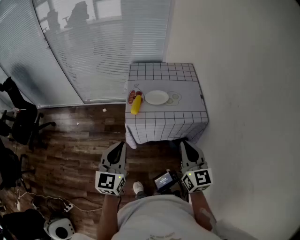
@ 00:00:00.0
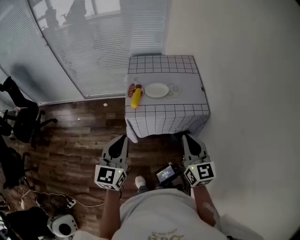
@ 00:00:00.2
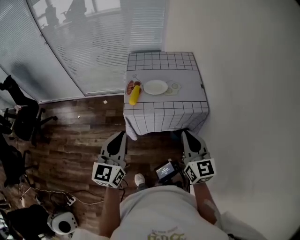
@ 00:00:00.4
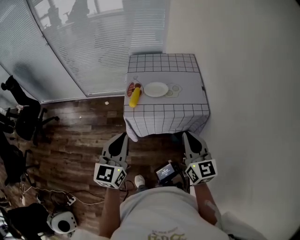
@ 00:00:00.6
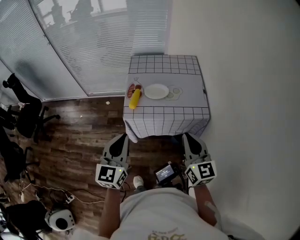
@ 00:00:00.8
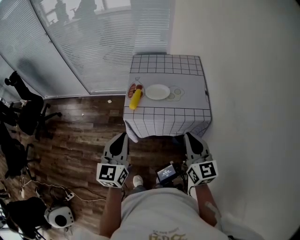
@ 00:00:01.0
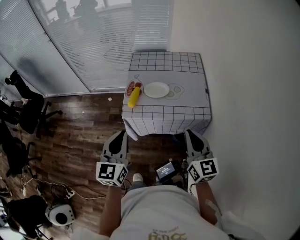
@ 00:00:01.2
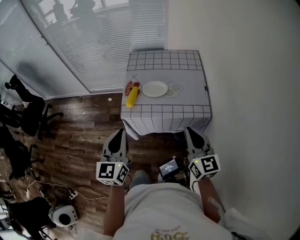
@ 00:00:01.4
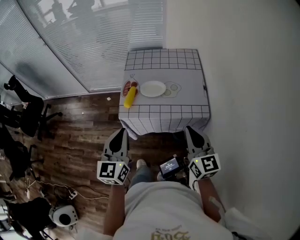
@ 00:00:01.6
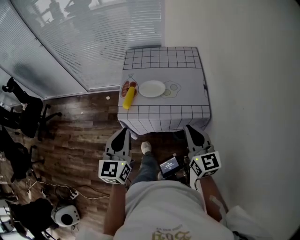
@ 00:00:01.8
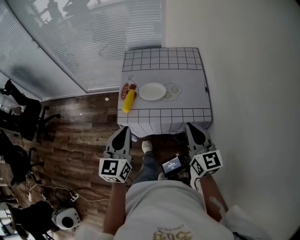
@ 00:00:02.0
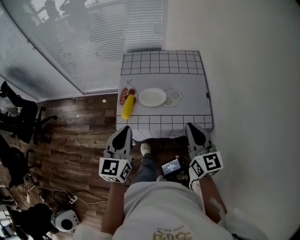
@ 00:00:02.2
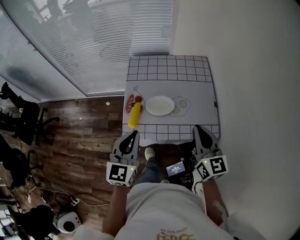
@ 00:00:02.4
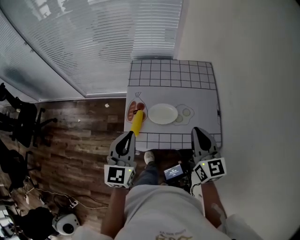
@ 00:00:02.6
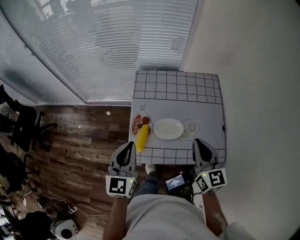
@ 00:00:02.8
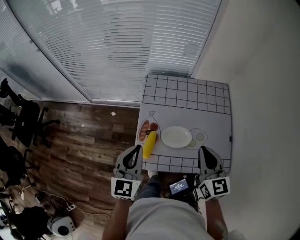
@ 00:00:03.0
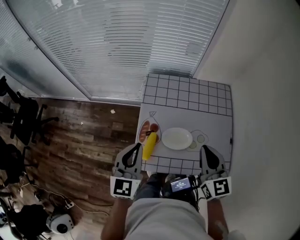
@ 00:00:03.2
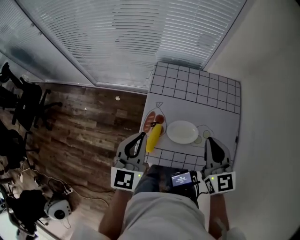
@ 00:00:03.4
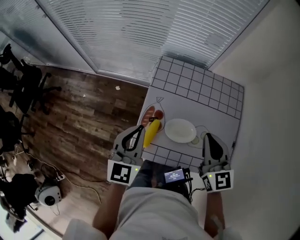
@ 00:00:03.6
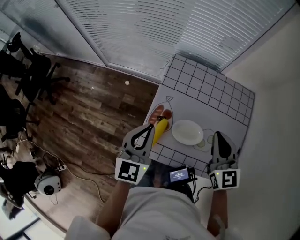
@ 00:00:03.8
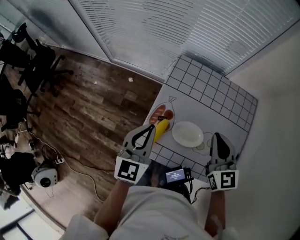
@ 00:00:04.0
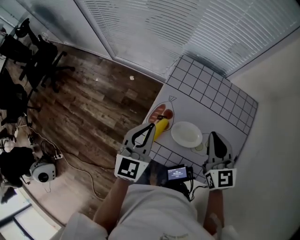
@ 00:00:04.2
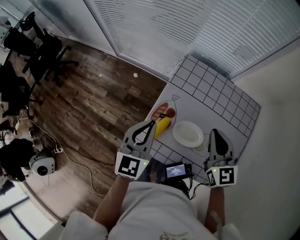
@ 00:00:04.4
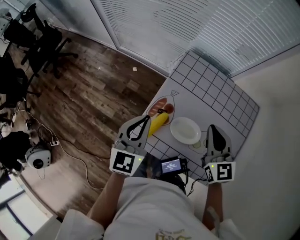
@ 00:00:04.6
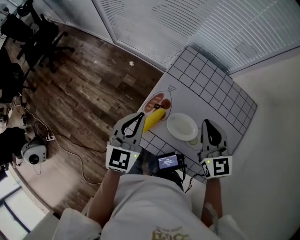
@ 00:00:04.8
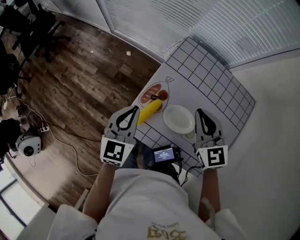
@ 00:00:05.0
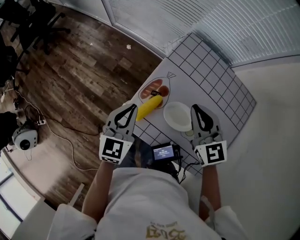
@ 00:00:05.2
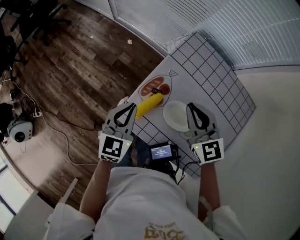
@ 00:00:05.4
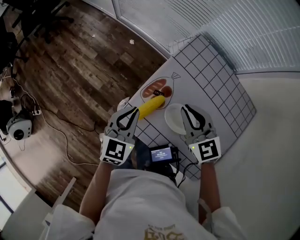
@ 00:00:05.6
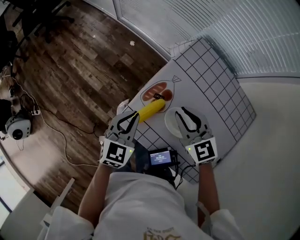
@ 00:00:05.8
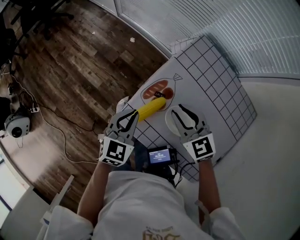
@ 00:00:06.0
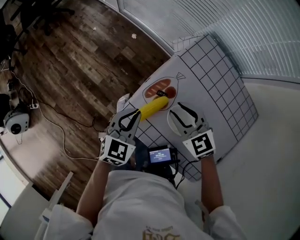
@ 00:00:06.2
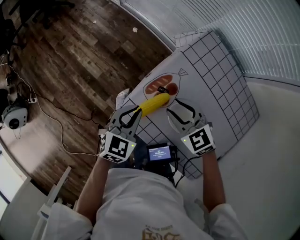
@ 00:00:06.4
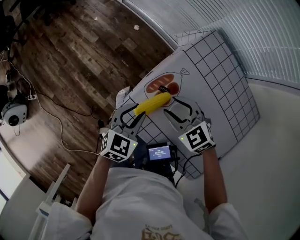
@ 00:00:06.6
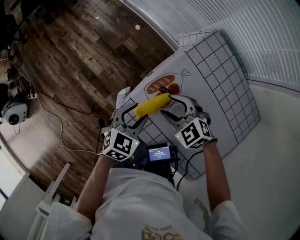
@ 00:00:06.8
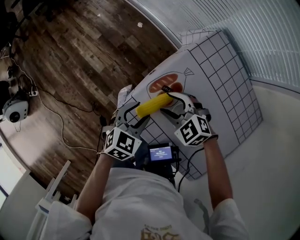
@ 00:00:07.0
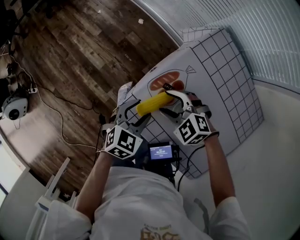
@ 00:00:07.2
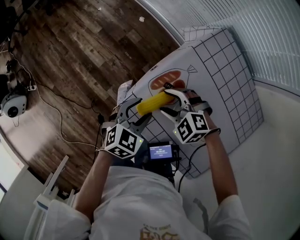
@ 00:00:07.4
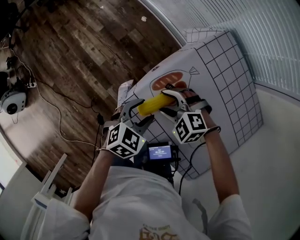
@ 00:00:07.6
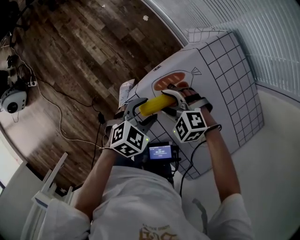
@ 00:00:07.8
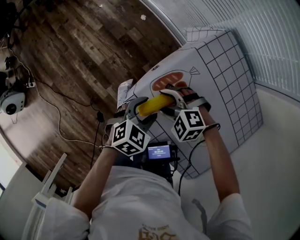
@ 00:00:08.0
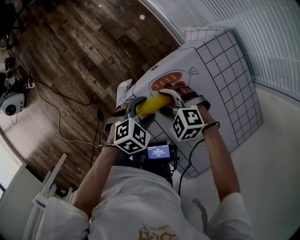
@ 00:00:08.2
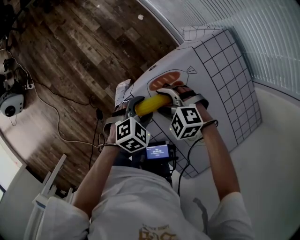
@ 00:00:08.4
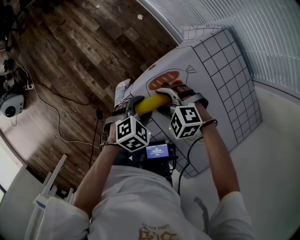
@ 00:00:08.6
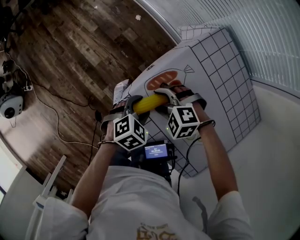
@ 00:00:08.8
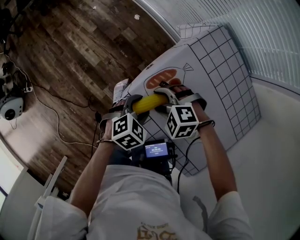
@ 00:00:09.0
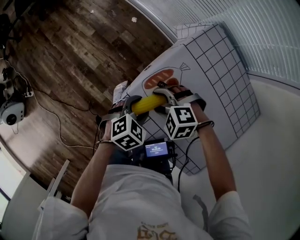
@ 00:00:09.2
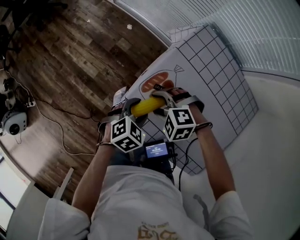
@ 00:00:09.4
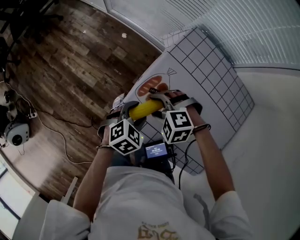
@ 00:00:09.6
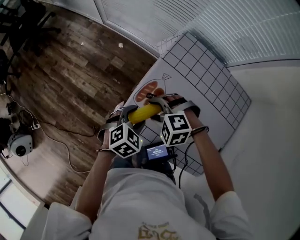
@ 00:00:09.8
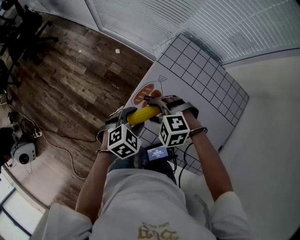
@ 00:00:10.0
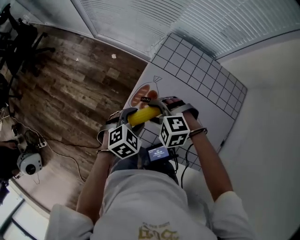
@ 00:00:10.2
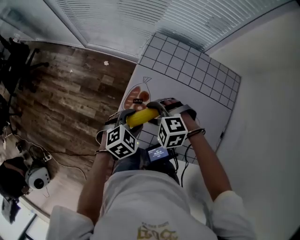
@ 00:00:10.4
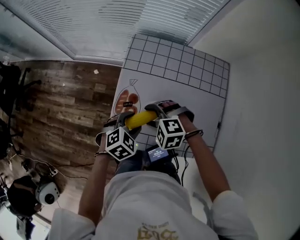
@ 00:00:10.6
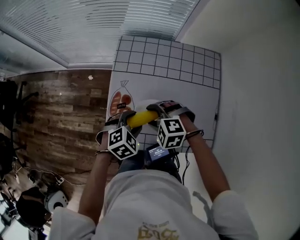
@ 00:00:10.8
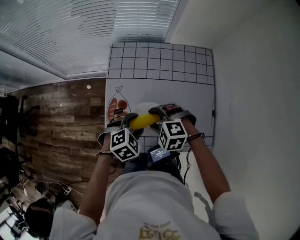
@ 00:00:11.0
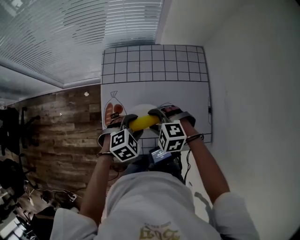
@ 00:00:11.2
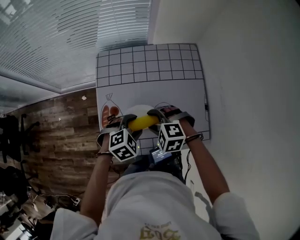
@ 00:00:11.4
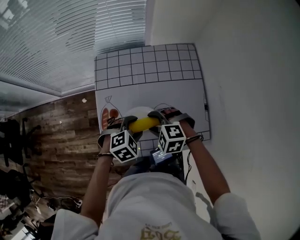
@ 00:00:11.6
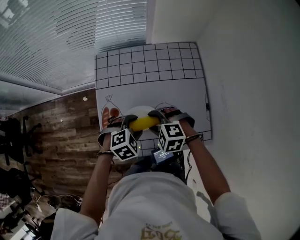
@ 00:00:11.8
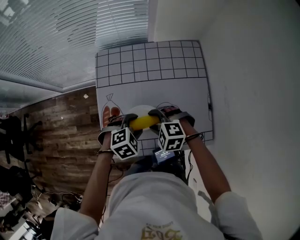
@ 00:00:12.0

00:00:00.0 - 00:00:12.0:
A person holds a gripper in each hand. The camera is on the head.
00:00:00.0 - 00:00:01.6: The grippers both shift to the right and forward by some 15 cm.
00:00:01.6 - 00:00:03.0: Both grippers travel together forward, some 25 cm.
00:00:03.0 - 00:00:04.4: The right gripper travels forward by some 10 cm, and changes its angle by roughly 20 degrees. Meanwhile the left gripper is displaced forward by roughly 5 cm.
00:00:04.4 - 00:00:06.0: The left gripper moves downward, roughly 15 cm, while the right gripper is displaced to the left and downward by approximately 15 cm, changes its angle by roughly 40 degrees, and opens its fingers.
00:00:06.0 - 00:00:07.6: The left gripper is displaced downward by roughly 5 cm, and opens; the right gripper moves downward, about 15 cm, rotates approximately 60 degrees, and opens its fingers.
00:00:07.6 - 00:00:09.0: The grippers make only small movements.
00:00:09.0 - 00:00:10.4: The two grippers go about 10 cm upward. The left gripper changes its angle by approximately 30 degrees. The right gripper swivels about 30 degrees.
00:00:10.4 - 00:00:12.0: The right gripper ends up some 15 cm from where it was, and turns by roughly 30 degrees. Meanwhile the left gripper moves approximately 10 cm, and rotates some 40 degrees.

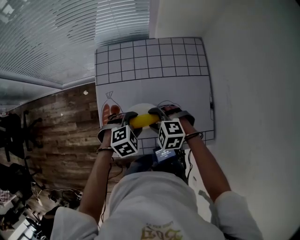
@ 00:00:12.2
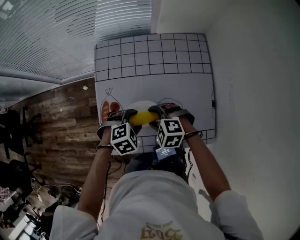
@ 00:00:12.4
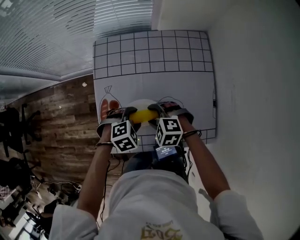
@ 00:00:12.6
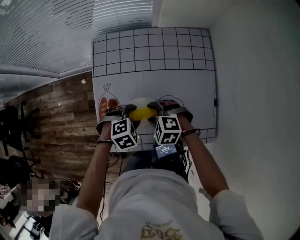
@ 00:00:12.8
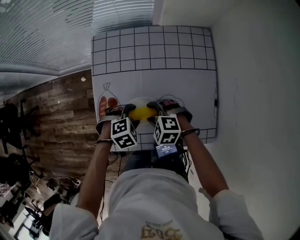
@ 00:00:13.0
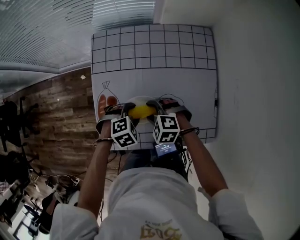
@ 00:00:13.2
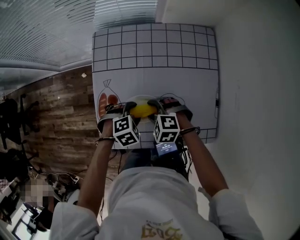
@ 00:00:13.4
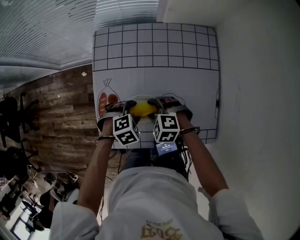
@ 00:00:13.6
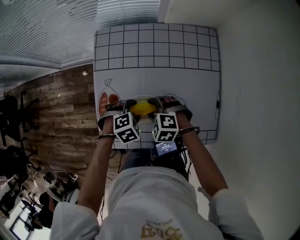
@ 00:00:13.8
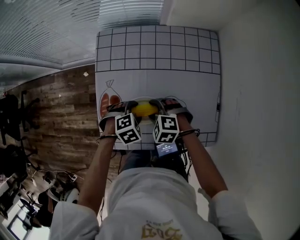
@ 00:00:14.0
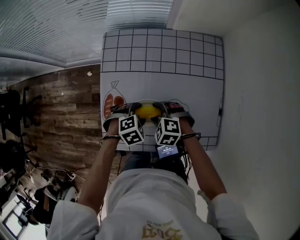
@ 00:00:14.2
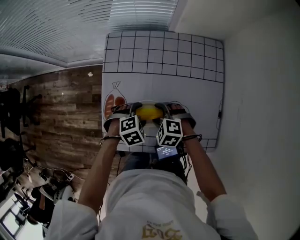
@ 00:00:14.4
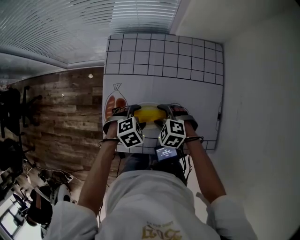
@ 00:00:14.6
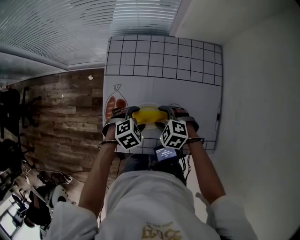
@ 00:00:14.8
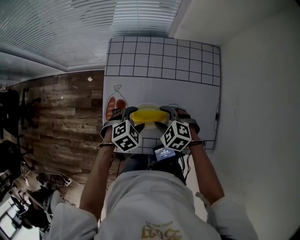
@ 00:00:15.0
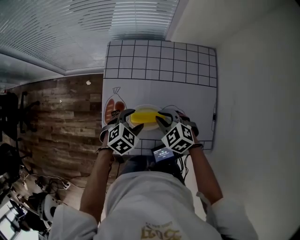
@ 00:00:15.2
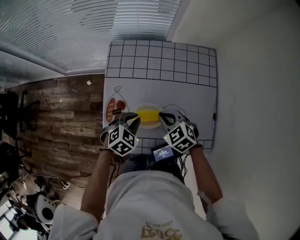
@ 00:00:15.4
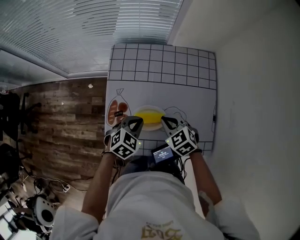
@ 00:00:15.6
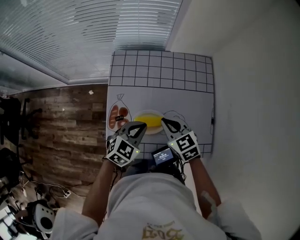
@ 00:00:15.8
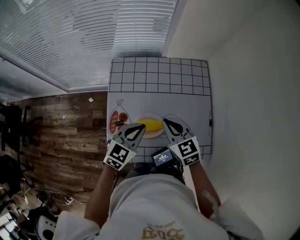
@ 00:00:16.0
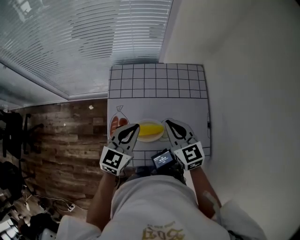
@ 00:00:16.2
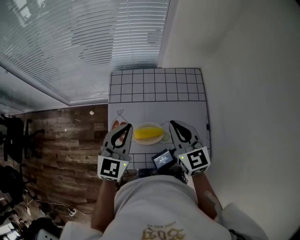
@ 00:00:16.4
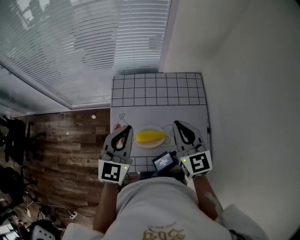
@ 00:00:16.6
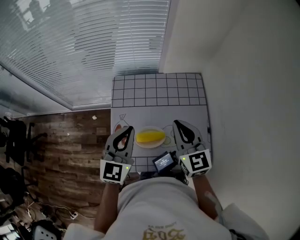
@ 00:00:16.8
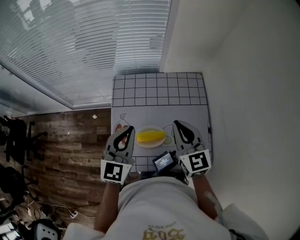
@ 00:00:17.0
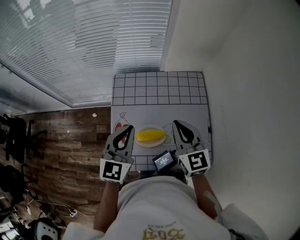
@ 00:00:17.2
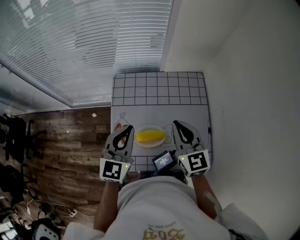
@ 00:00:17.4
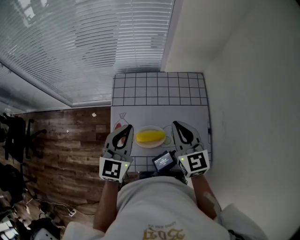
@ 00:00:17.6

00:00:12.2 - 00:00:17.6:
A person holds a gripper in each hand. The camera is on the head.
00:00:12.2 - 00:00:13.6: The two grippers go some 5 cm downward.
00:00:13.6 - 00:00:15.0: There are only small adjustments of the grippers.
00:00:15.0 - 00:00:16.2: The two grippers go roughly 20 cm upward. The right gripper angles its fingers upward, by roughly 40 degrees, and closes its fingers, while the left gripper points its fingers roughly 50 degrees further upward, and closes.
00:00:16.2 - 00:00:17.6: Both grippers move upward, roughly 5 cm.

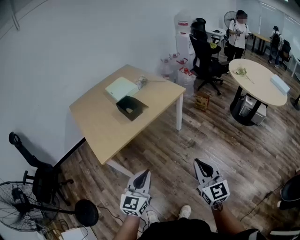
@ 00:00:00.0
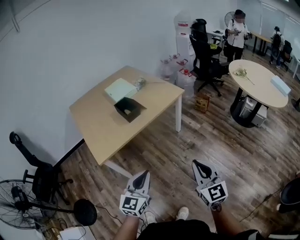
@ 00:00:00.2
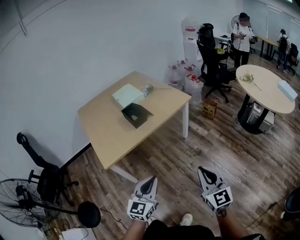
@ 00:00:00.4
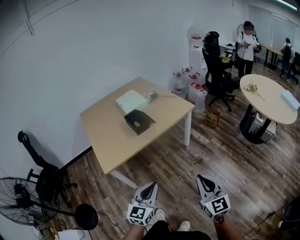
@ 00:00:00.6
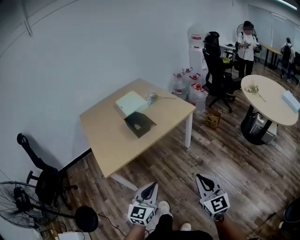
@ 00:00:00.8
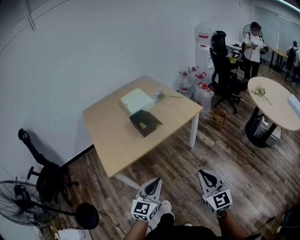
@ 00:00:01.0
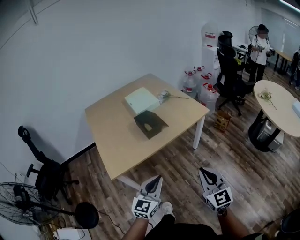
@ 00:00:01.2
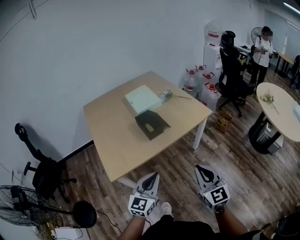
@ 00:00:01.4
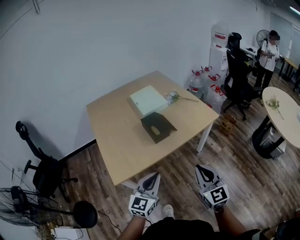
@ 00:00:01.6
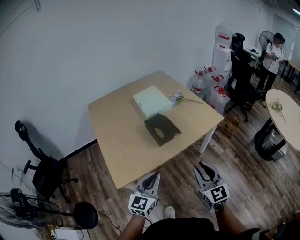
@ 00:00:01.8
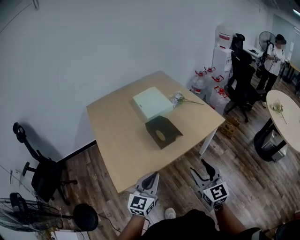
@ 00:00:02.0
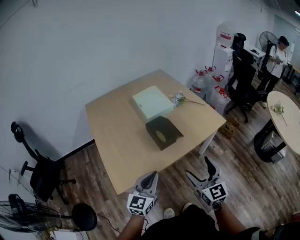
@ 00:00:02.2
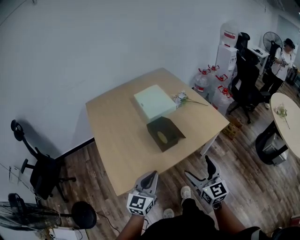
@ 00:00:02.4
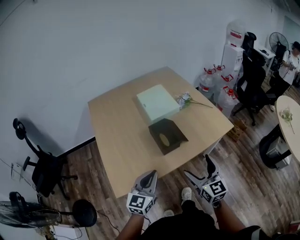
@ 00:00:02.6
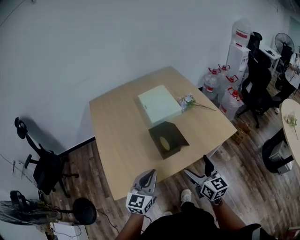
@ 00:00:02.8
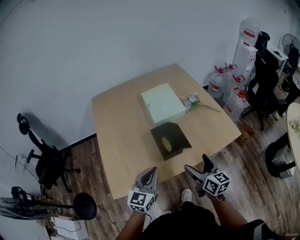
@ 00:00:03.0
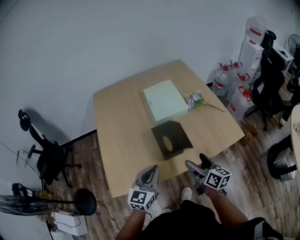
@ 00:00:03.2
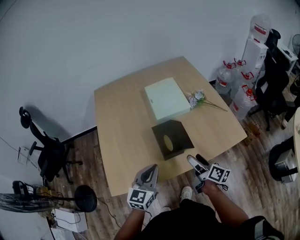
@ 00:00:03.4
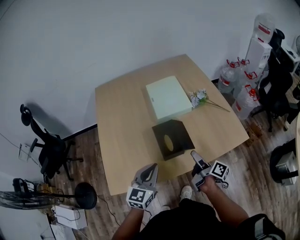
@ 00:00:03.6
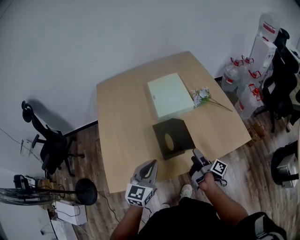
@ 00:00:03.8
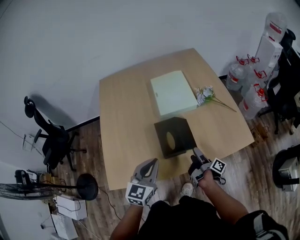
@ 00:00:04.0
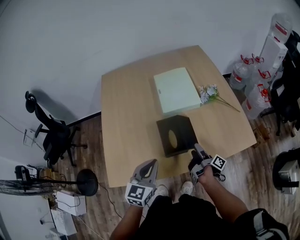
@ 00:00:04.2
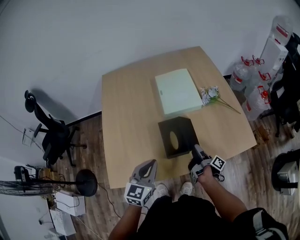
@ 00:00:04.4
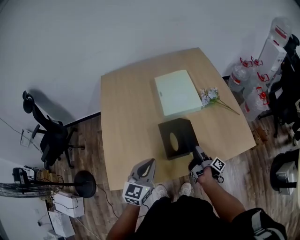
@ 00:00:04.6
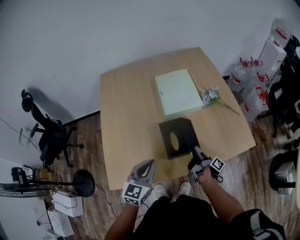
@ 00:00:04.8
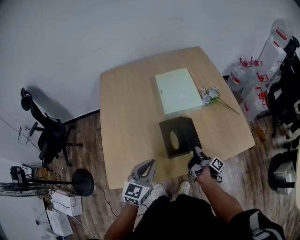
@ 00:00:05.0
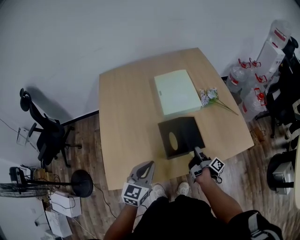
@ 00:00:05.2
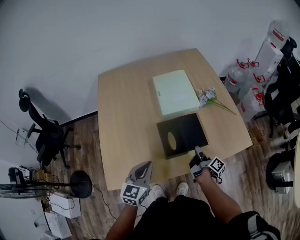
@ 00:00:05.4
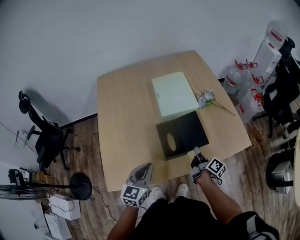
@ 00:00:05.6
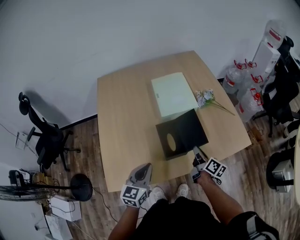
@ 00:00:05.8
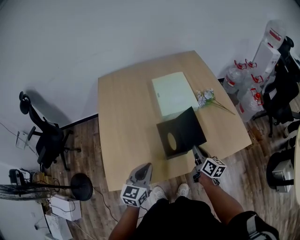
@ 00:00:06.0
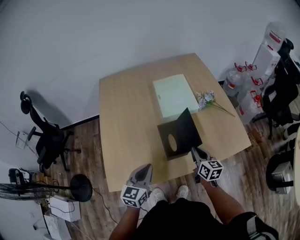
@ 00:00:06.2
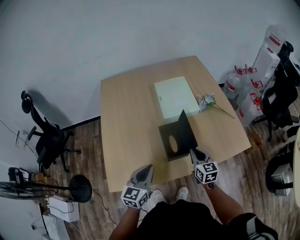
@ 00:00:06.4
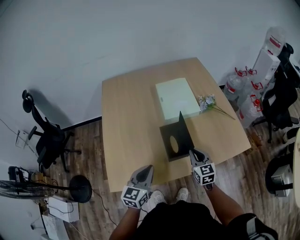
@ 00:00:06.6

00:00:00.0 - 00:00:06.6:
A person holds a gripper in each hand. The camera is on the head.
00:00:00.0 - 00:00:01.6: The right gripper shifts some 25 cm forward and to the left; the left gripper shifts about 20 cm forward.
00:00:01.6 - 00:00:03.2: The grippers both shift forward by roughly 25 cm. The right gripper rolls clockwise, seen from behind, by roughly 50 degrees, and opens up.
00:00:03.2 - 00:00:05.0: The right gripper goes roughly 20 cm downward and forward, twists approximately 60 degrees clockwise, seen from behind, and closes its fingers, while the left gripper ends up roughly 5 cm from where it was.
00:00:05.0 - 00:00:06.6: The right gripper goes some 10 cm upward, and rotates around the line of its fingers by approximately 100 degrees, counterclockwise from behind.
